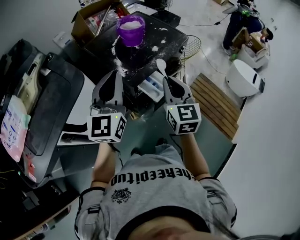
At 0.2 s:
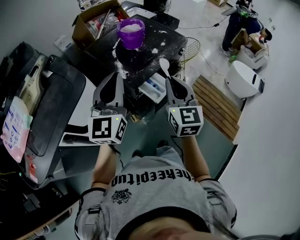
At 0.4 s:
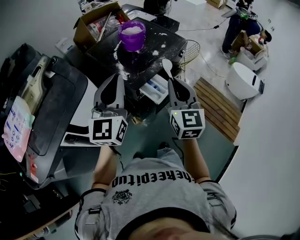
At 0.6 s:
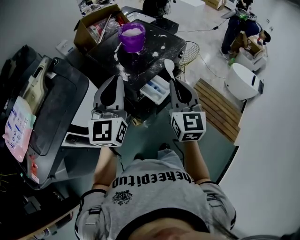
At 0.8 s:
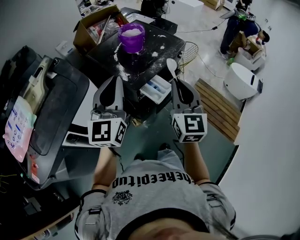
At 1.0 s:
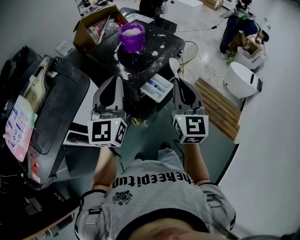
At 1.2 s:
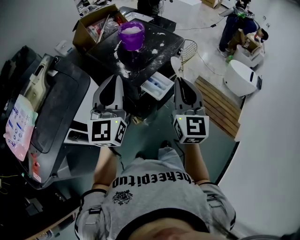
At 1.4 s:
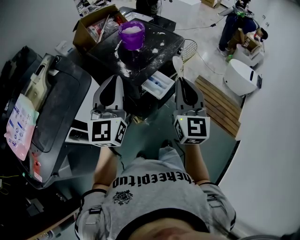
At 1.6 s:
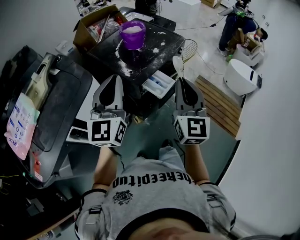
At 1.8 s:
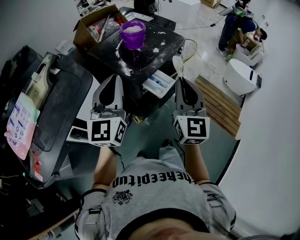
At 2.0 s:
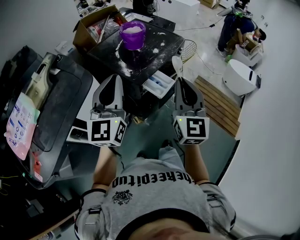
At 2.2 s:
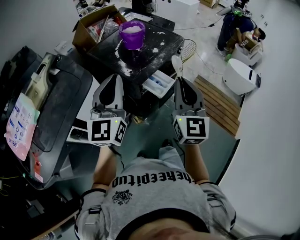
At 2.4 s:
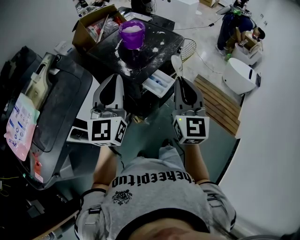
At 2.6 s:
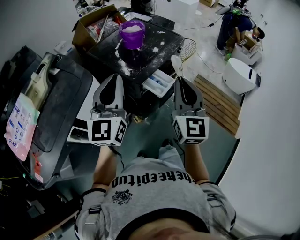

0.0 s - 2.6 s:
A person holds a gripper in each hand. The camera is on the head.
0.0 s - 1.2 s: The right gripper heads backward and upward, covering roughly 10 cm. The left gripper travels backward by about 5 cm.
1.2 s - 2.6 s: The grippers make only small movements.

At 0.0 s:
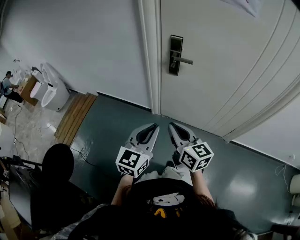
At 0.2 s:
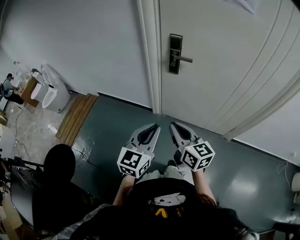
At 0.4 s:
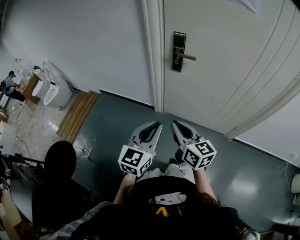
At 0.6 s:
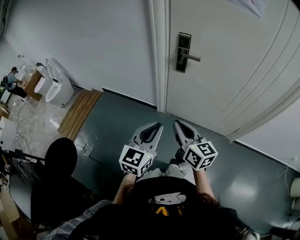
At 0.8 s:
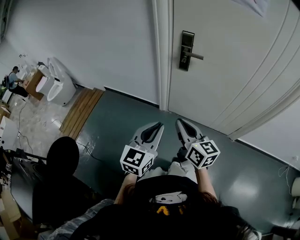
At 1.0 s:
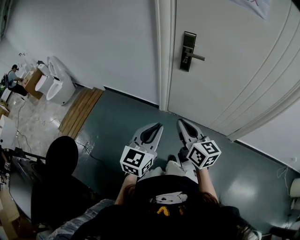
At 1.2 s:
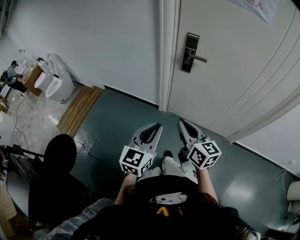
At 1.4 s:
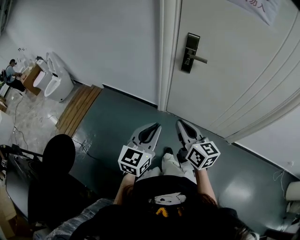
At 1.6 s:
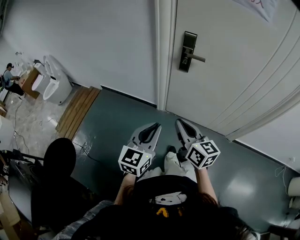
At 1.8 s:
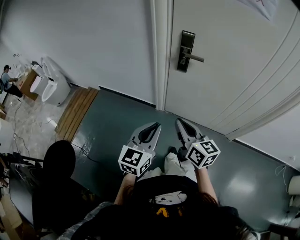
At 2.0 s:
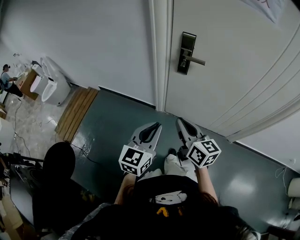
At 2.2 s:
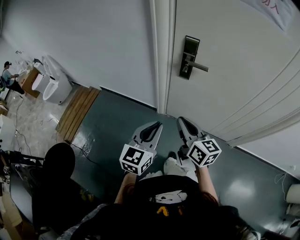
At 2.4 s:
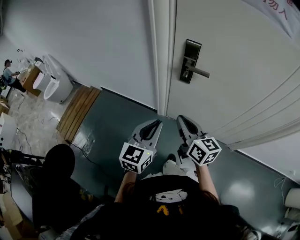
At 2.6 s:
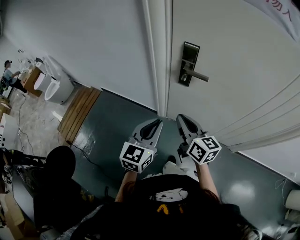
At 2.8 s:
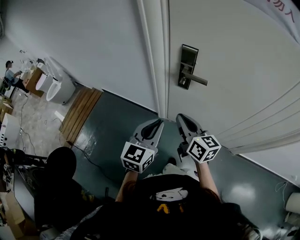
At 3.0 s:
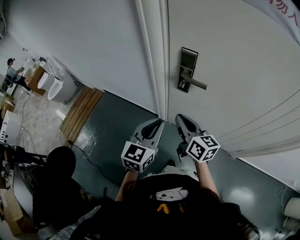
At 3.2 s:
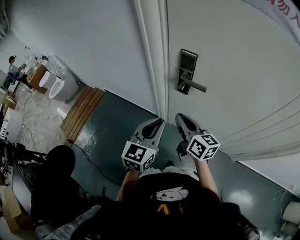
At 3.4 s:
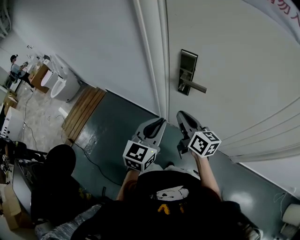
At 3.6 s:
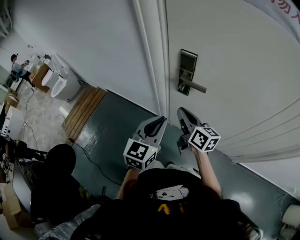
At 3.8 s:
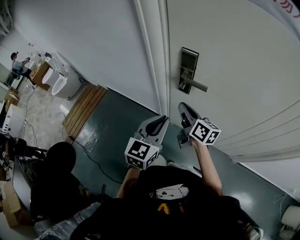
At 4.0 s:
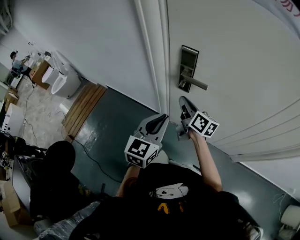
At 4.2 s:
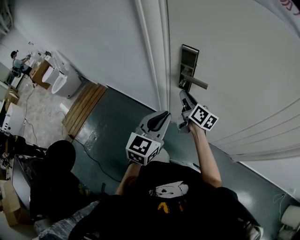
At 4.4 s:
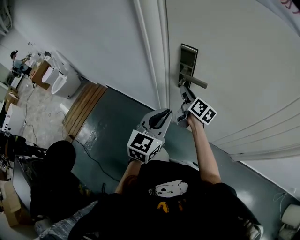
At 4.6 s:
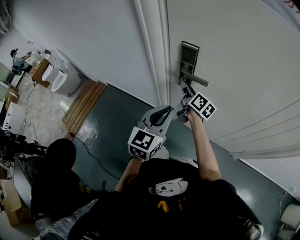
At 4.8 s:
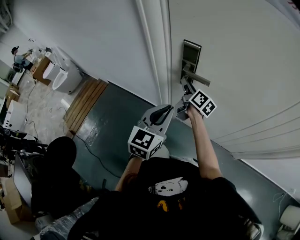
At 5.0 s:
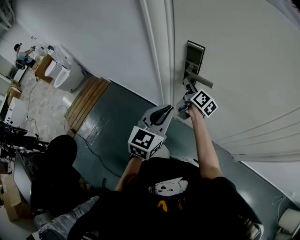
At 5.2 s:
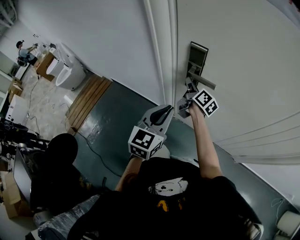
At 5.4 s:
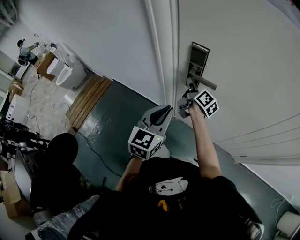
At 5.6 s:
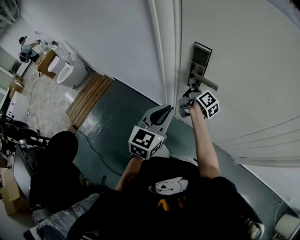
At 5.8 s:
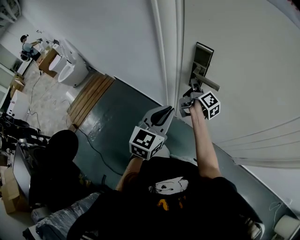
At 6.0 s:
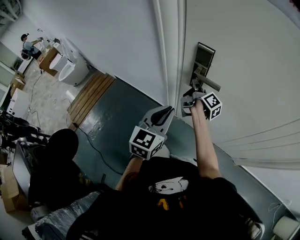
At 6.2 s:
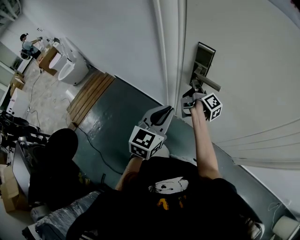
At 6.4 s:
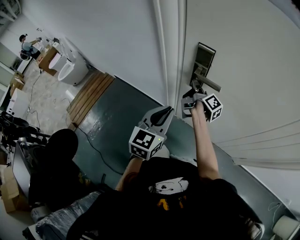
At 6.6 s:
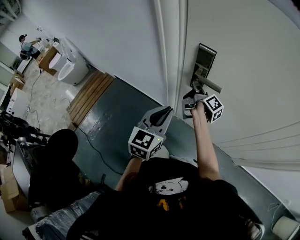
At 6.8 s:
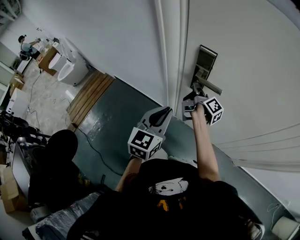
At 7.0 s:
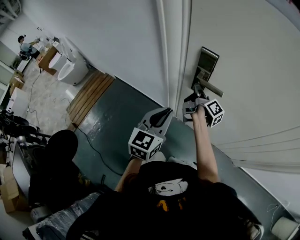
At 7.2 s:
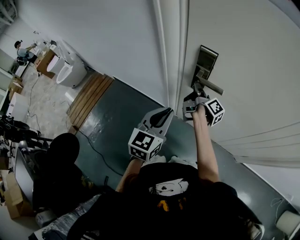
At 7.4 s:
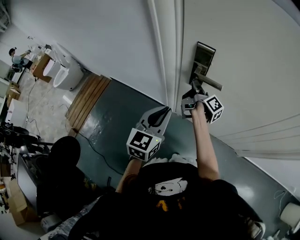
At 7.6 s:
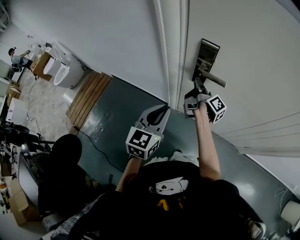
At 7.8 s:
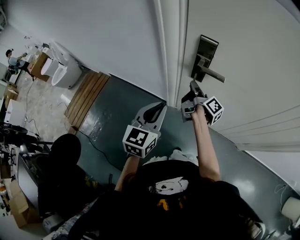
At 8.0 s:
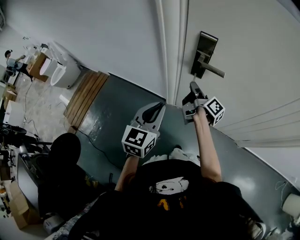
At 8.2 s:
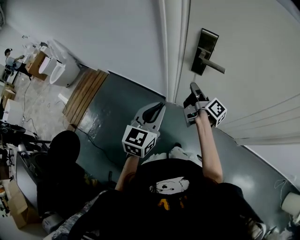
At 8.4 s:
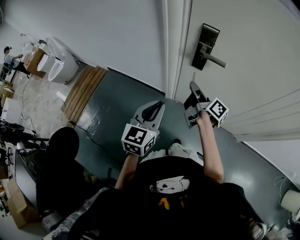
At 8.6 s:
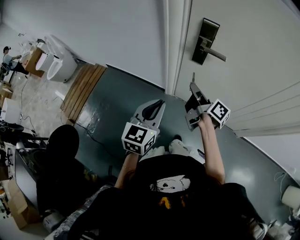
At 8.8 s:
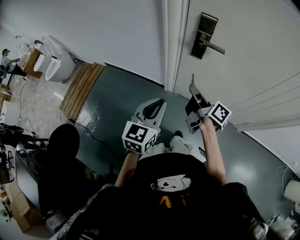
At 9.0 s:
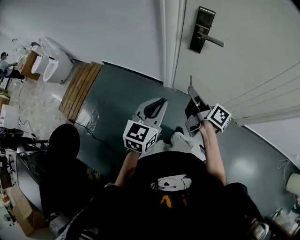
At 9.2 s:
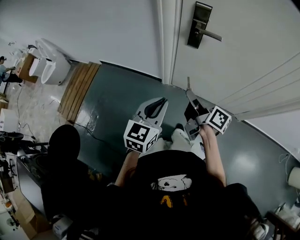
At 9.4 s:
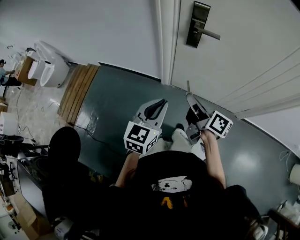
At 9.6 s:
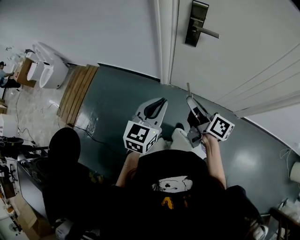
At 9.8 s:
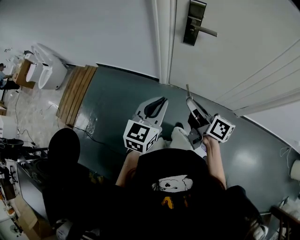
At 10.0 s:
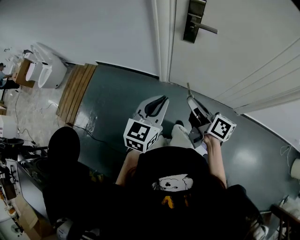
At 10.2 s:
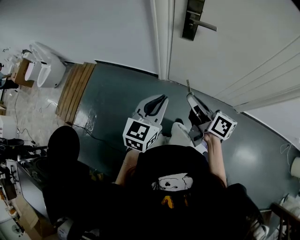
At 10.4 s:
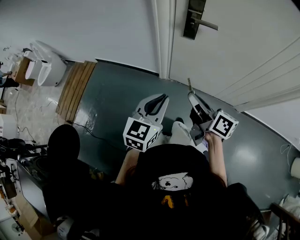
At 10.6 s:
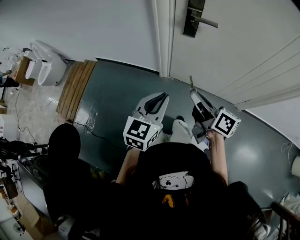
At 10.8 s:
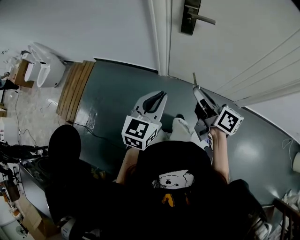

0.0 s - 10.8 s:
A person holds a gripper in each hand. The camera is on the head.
0.0 s - 1.6 s: The left gripper moves approximately 5 cm.
1.6 s - 3.0 s: The right gripper is displaced forward by approximately 25 cm; the left gripper shifts about 25 cm forward and to the right.
3.0 s - 4.6 s: The left gripper changes place by some 5 cm. The right gripper is displaced forward by some 20 cm, swivels some 30 degrees, and opens up.
4.6 s - 6.2 s: The right gripper swivels roughly 30 degrees, and closes.
6.2 s - 7.8 s: The left gripper shifts approximately 5 cm to the left. Meanwhile the right gripper travels backward by roughly 10 cm.
7.8 s - 9.2 s: The left gripper travels backward by roughly 15 cm; the right gripper shifts about 25 cm backward, and rotates roughly 30 degrees.
9.2 s - 10.8 s: The right gripper travels backward by roughly 5 cm.

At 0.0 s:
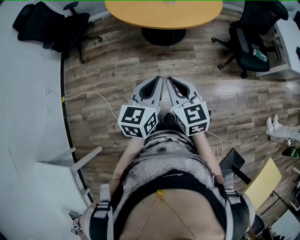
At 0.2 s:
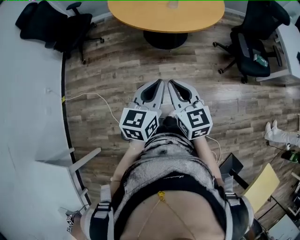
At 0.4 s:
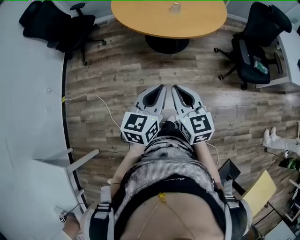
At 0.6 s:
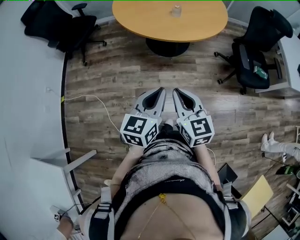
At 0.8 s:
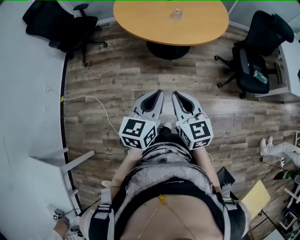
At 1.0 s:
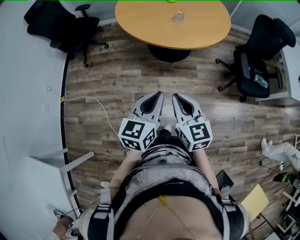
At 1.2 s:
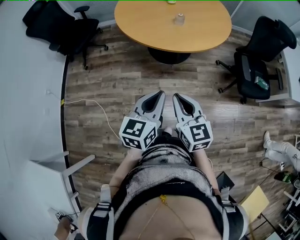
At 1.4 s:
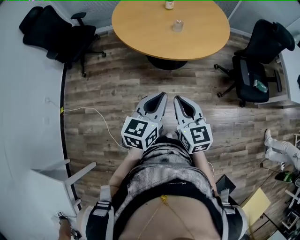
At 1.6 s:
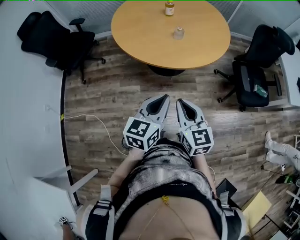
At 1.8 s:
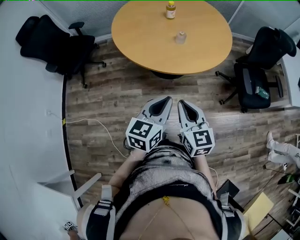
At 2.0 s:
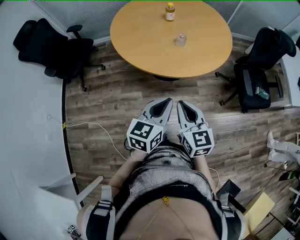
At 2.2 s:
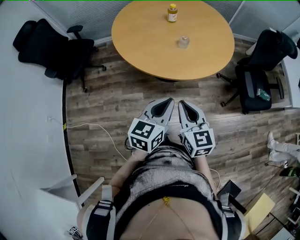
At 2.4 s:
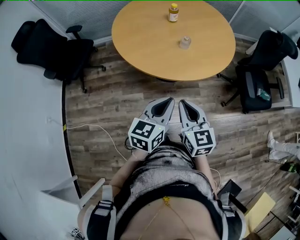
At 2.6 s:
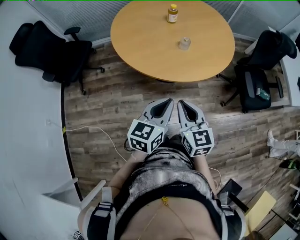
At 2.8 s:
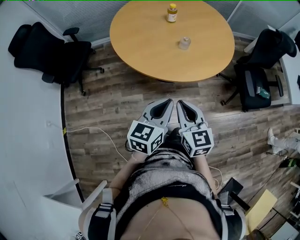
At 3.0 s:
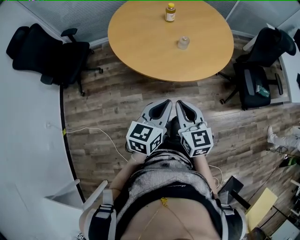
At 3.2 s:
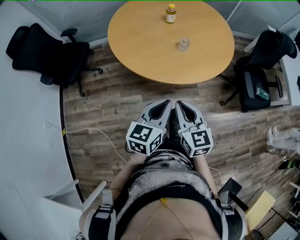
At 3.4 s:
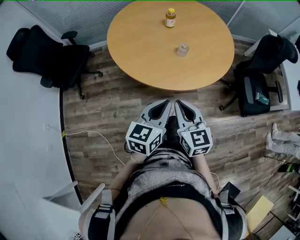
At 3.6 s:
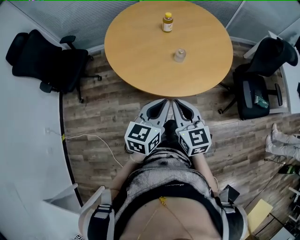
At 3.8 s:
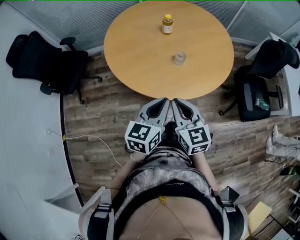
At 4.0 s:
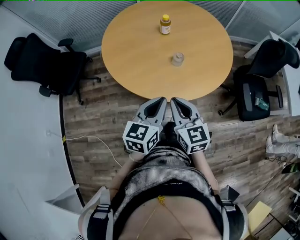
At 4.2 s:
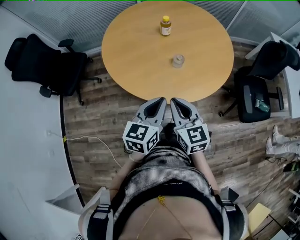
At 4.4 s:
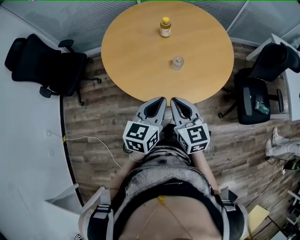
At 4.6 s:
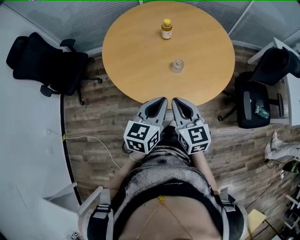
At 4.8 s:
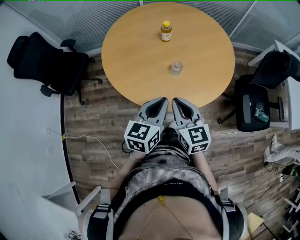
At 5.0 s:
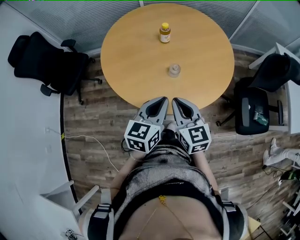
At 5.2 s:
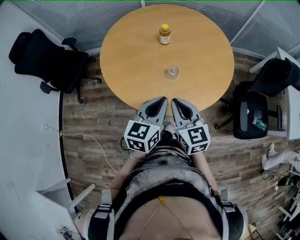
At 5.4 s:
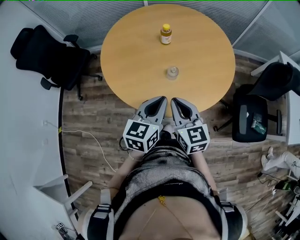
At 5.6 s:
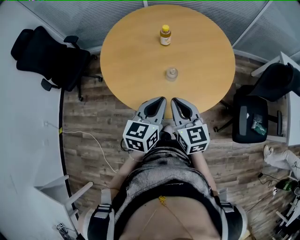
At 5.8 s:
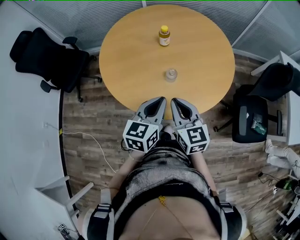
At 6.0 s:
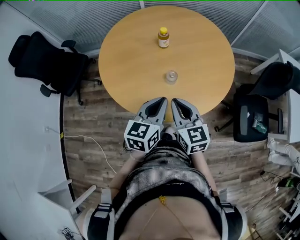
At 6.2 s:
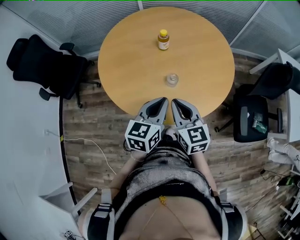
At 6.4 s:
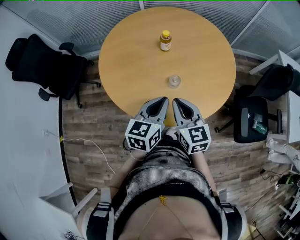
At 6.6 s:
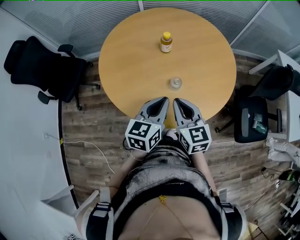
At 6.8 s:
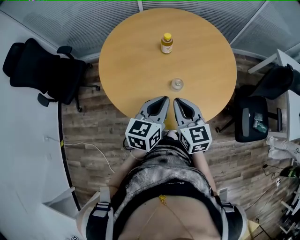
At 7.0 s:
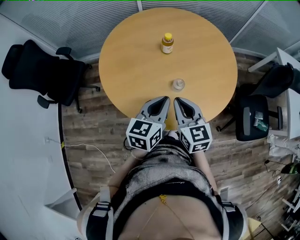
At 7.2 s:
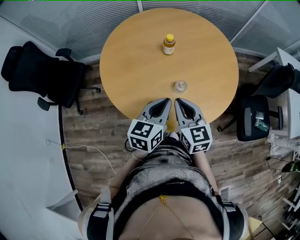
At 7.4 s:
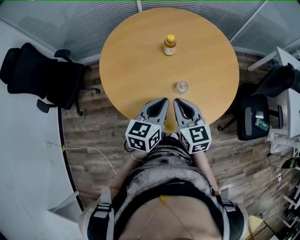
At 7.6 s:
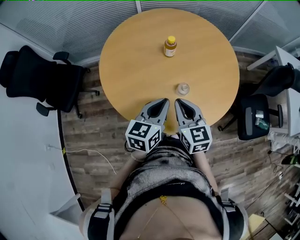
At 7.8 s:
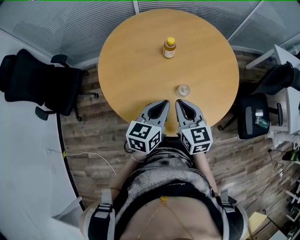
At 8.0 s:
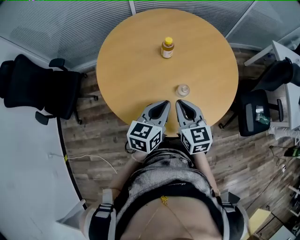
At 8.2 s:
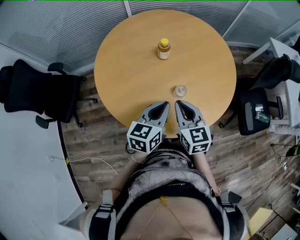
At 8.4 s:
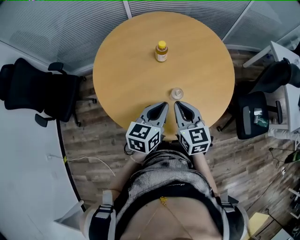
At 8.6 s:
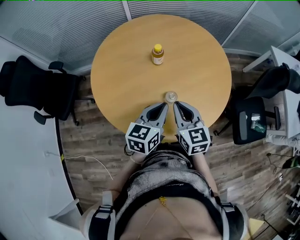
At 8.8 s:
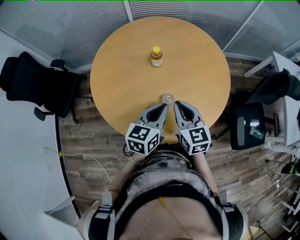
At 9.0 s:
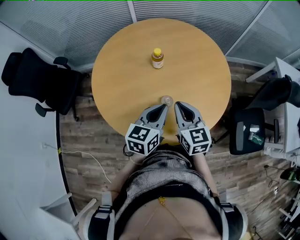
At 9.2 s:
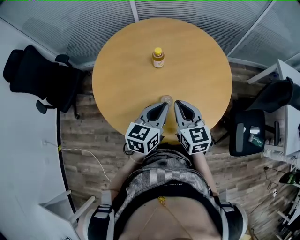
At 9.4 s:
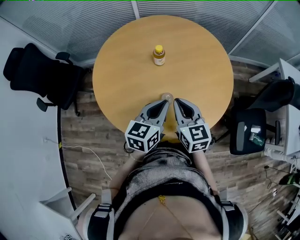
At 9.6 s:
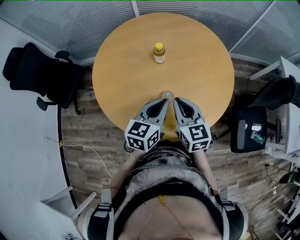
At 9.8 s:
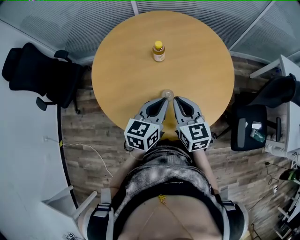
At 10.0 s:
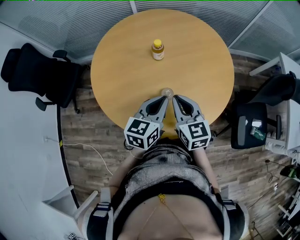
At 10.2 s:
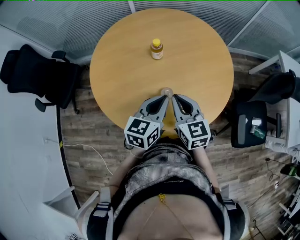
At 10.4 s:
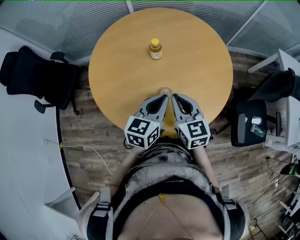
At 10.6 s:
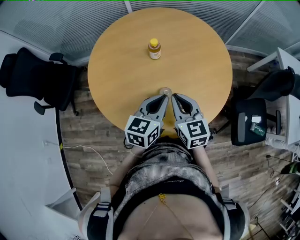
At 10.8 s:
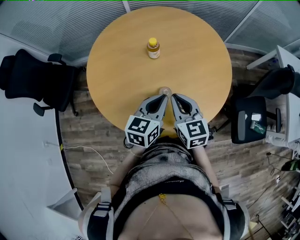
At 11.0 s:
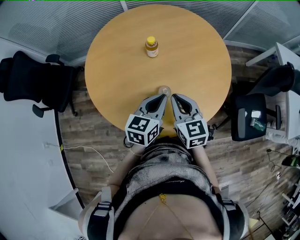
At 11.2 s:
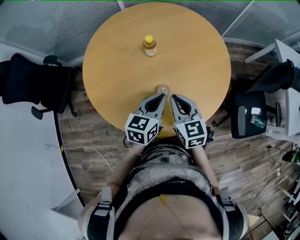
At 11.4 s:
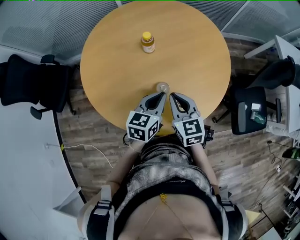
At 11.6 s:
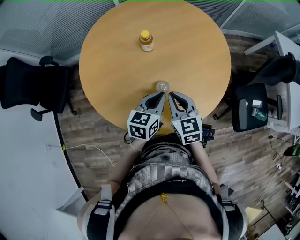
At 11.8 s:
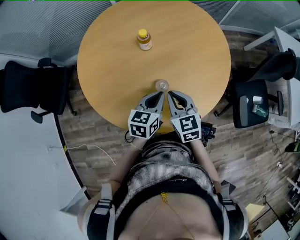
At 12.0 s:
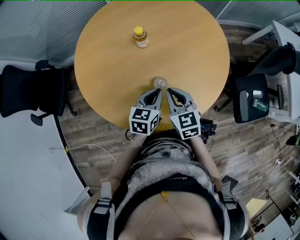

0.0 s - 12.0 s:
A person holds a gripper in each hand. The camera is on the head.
0.0 s - 1.6 s: The two grippers go some 15 cm forward.
1.6 s - 3.0 s: Both grippers travel together forward and to the left, approximately 10 cm.
3.0 s - 4.4 s: Both grippers travel together forward, about 15 cm.
4.4 s - 6.0 s: The grippers both shift forward and to the right by approximately 10 cm.
6.0 s - 7.6 s: The right gripper heads forward and to the left, covering roughly 10 cm. Meanwhile the left gripper travels to the left and forward by some 10 cm.
7.6 s - 9.0 s: The left gripper heads to the right, covering roughly 10 cm. Meanwhile the right gripper shifts approximately 10 cm to the right and forward.
9.0 s - 10.4 s: Both grippers stay about where they are.
10.4 s - 12.0 s: The right gripper goes approximately 10 cm downward. The left gripper moves downward, some 10 cm.
